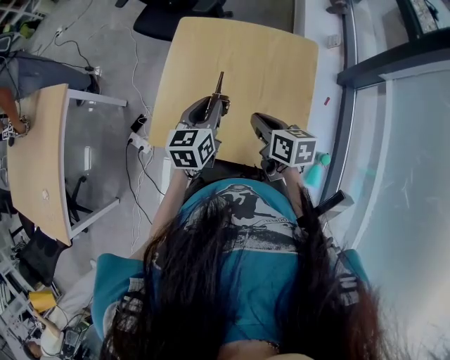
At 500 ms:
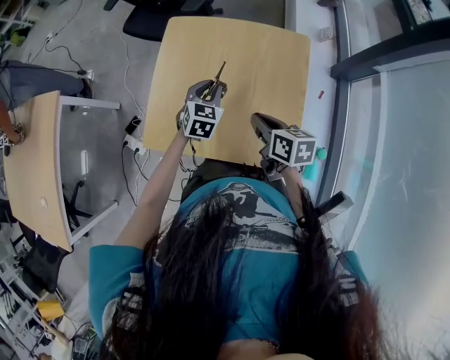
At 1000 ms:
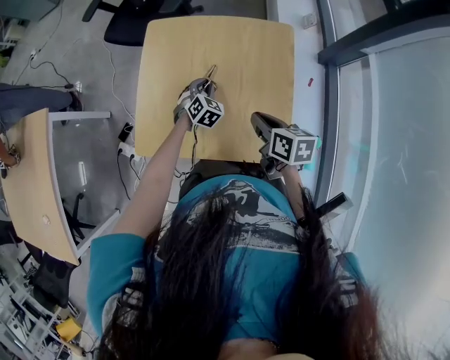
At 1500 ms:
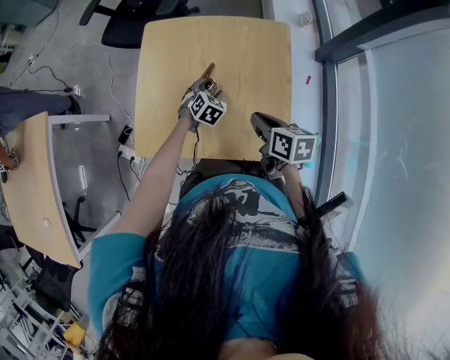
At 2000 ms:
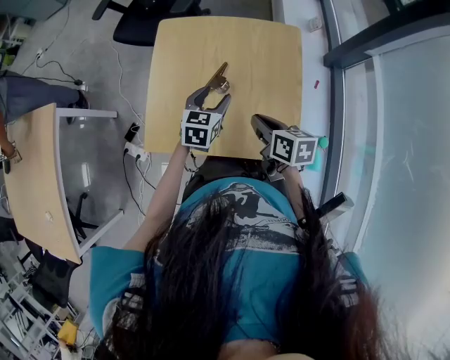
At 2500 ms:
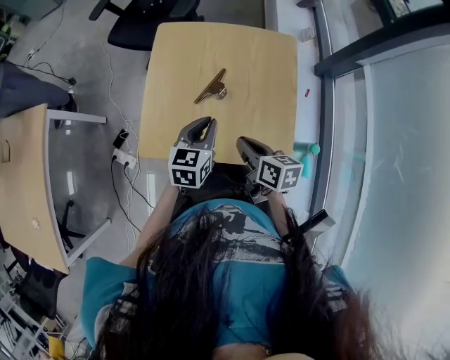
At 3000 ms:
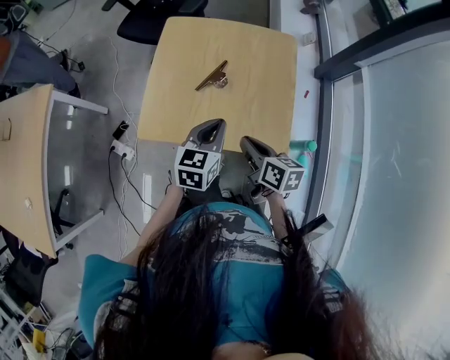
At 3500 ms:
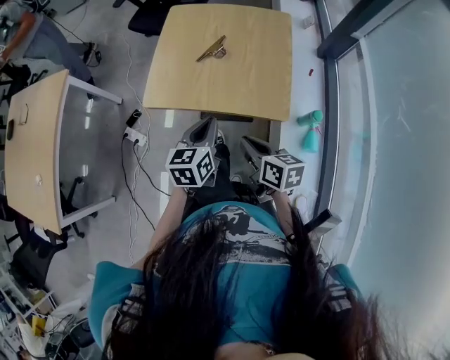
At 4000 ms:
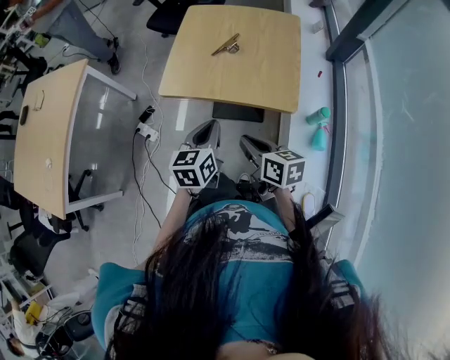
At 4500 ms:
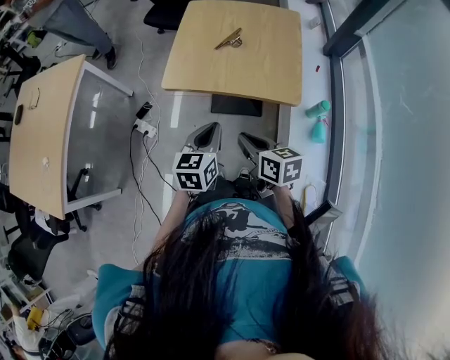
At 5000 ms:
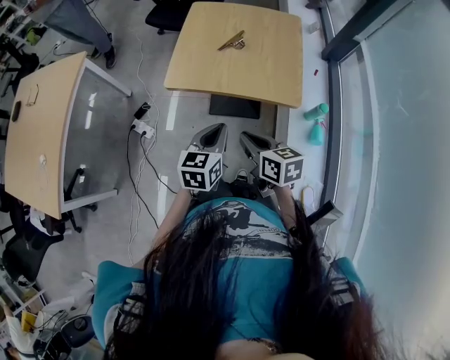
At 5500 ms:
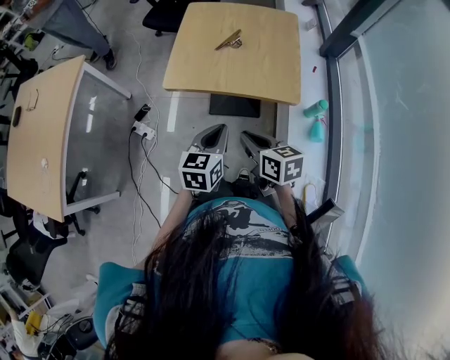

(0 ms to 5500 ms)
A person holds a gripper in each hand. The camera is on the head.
0 ms - 2000 ms: The left gripper moves downward, some 5 cm, and opens its fingers.
2000 ms - 3500 ms: The grippers both shift backward by about 30 cm. The left gripper closes up.
3500 ms - 5500 ms: The right gripper travels to the left and backward by about 15 cm; the left gripper travels backward and to the left by some 15 cm.

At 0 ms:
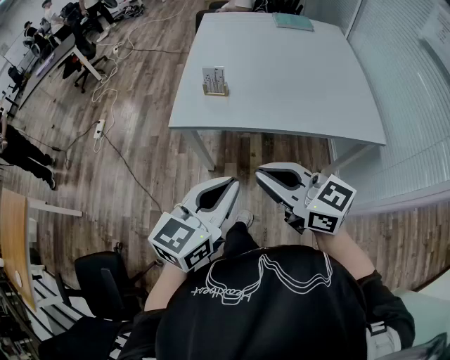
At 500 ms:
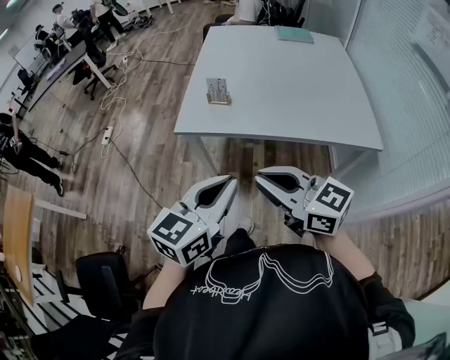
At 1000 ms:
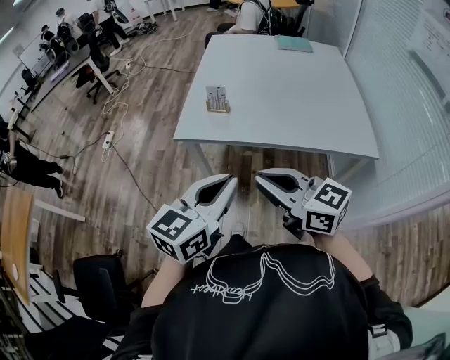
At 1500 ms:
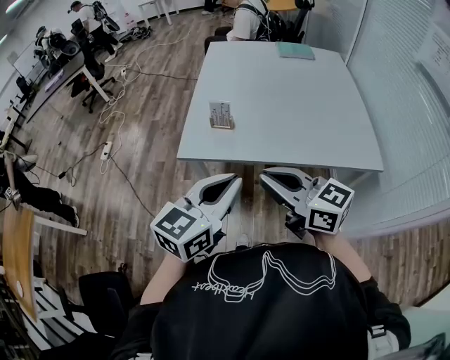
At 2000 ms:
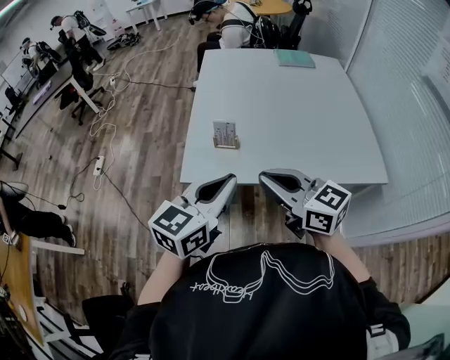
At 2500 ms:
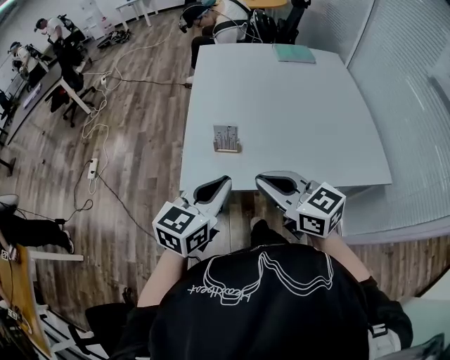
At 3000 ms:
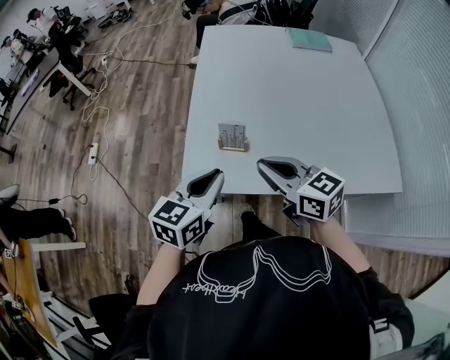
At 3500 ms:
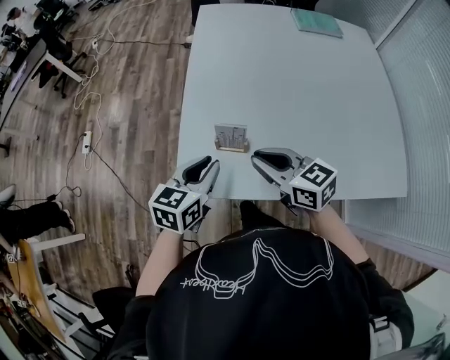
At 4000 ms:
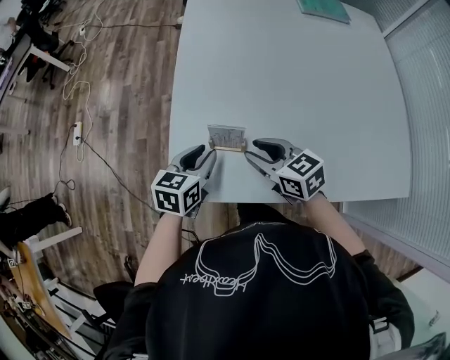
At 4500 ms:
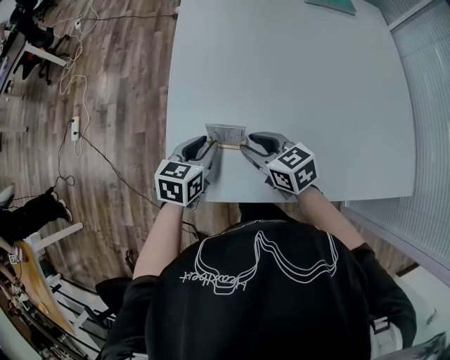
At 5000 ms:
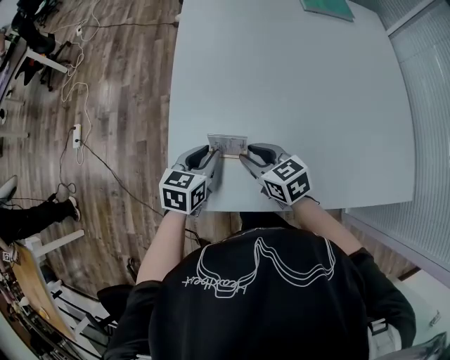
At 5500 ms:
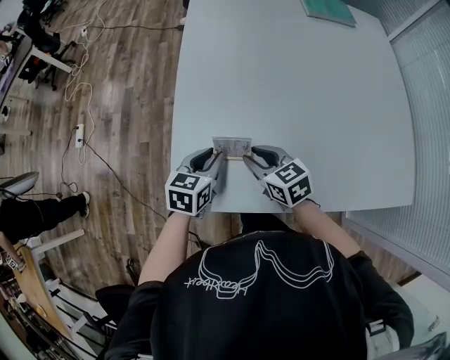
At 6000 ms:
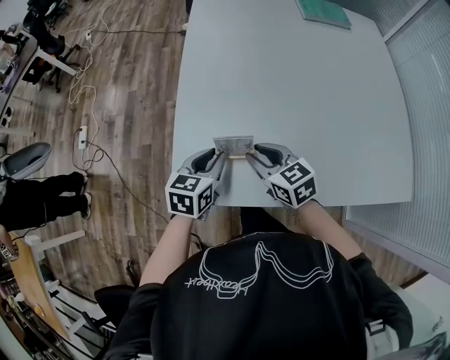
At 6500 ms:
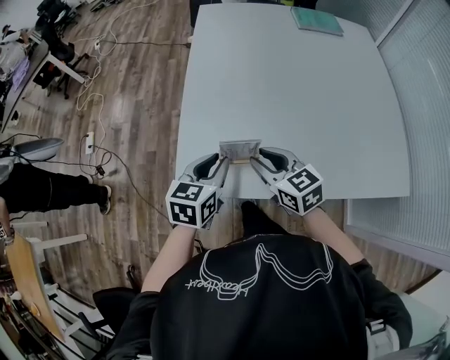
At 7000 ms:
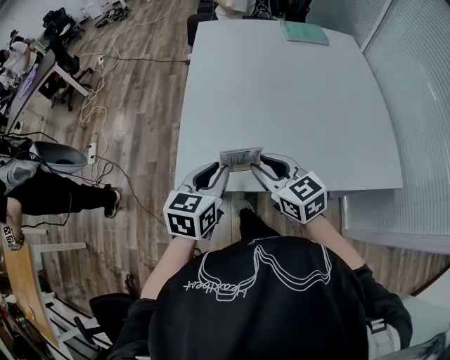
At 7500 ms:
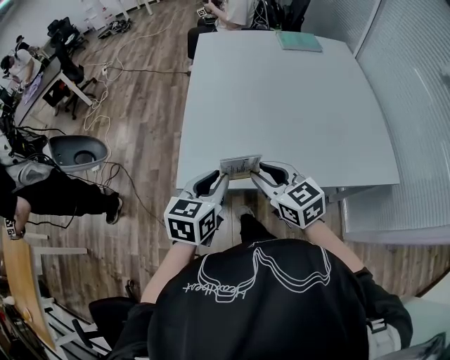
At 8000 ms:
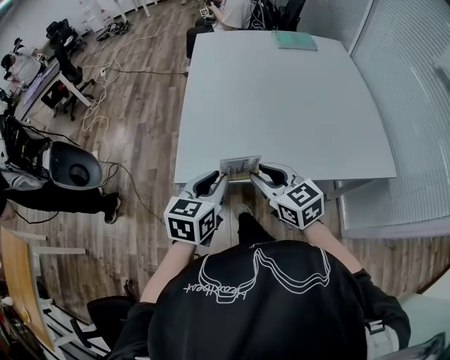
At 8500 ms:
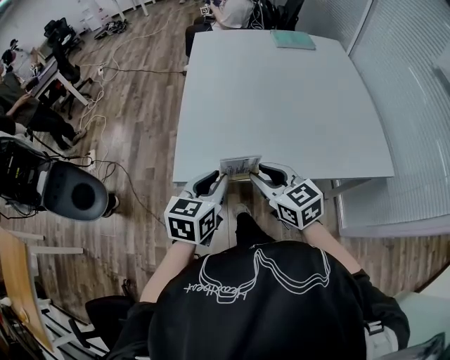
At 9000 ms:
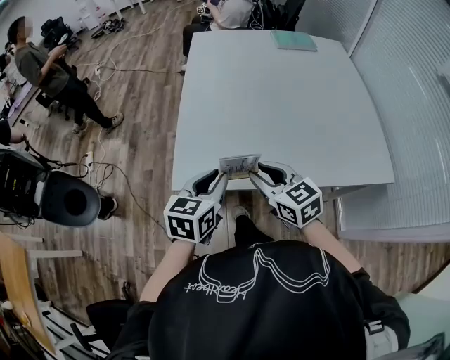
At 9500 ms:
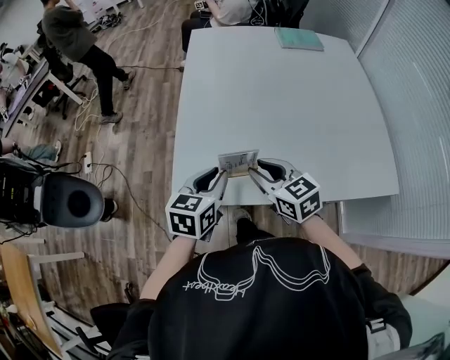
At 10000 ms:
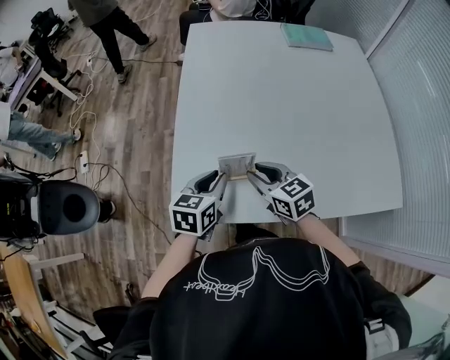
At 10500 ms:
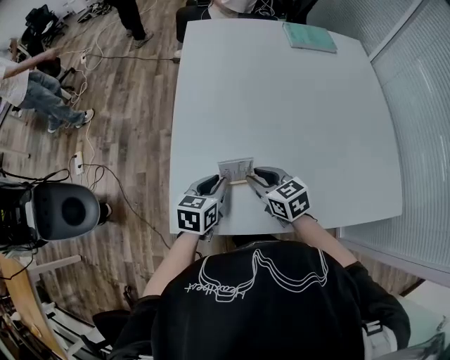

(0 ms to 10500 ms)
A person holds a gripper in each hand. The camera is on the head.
0 ms - 2000 ms: Both grippers travel together forward, approximately 15 cm.
2000 ms - 4000 ms: Both grippers move forward and downward, roughly 40 cm. The left gripper changes its angle by some 30 degrees, and opens. The right gripper swivels about 20 degrees, and opens.
4000 ms - 6500 ms: The left gripper shifts some 5 cm upward.
6500 ms - 8500 ms: The grippers both shift backward and upward by about 20 cm.
8500 ms - 10500 ms: Both grippers move forward and downward, approximately 25 cm.

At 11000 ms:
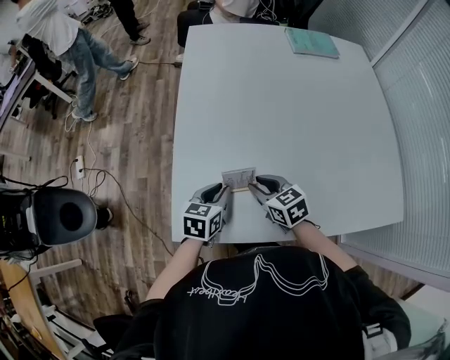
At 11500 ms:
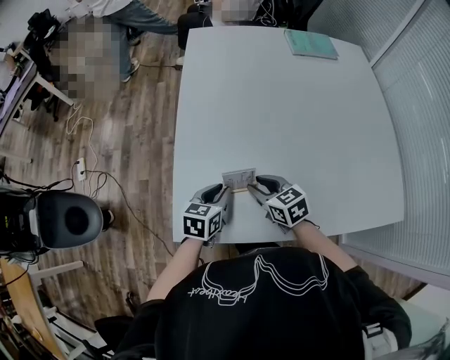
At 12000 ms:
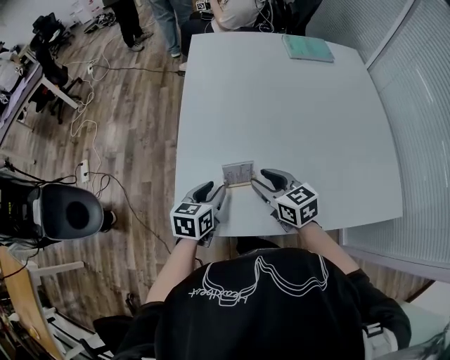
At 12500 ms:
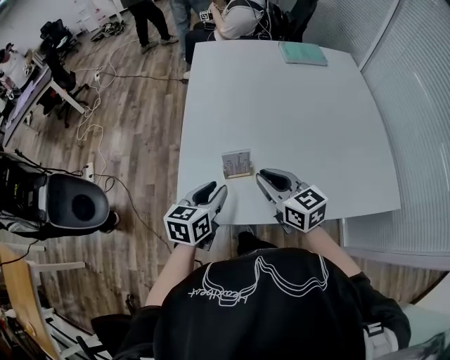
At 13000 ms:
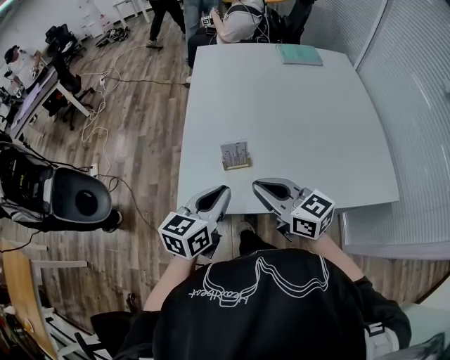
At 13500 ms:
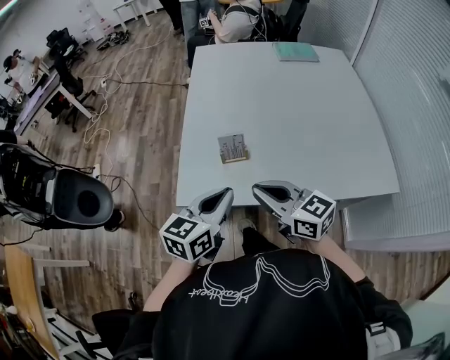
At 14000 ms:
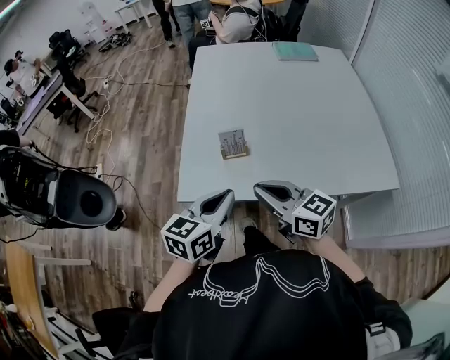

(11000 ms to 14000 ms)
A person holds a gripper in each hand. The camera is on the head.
11000 ms - 12500 ms: Both grippers travel together upward and backward, some 15 cm. The right gripper turns by approximately 20 degrees.
12500 ms - 14000 ms: The left gripper shifts approximately 15 cm backward and upward, and closes up. The right gripper shifts roughly 15 cm backward.

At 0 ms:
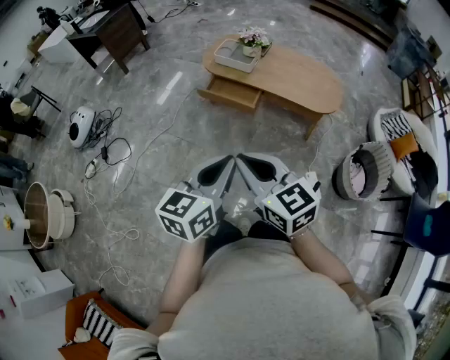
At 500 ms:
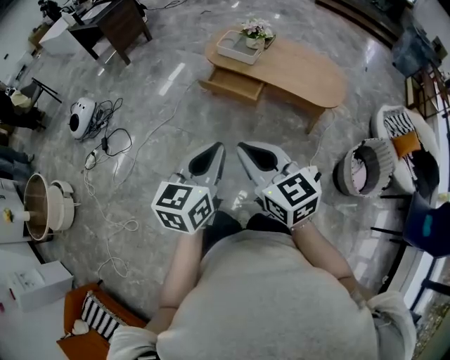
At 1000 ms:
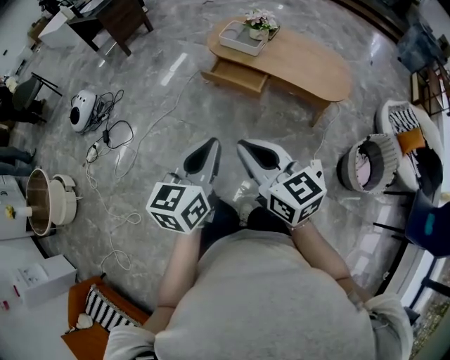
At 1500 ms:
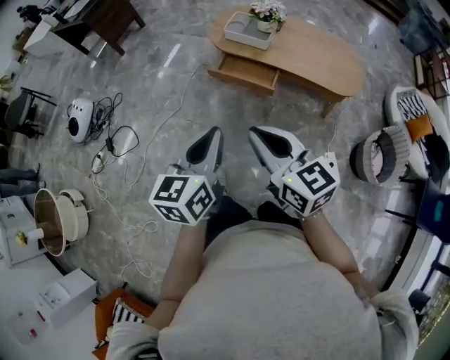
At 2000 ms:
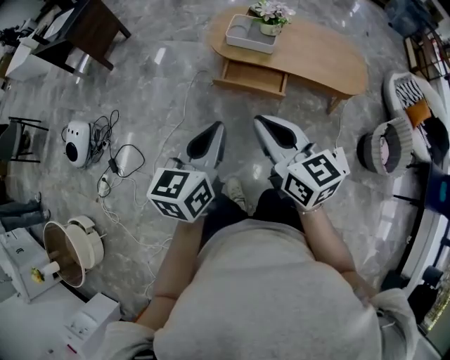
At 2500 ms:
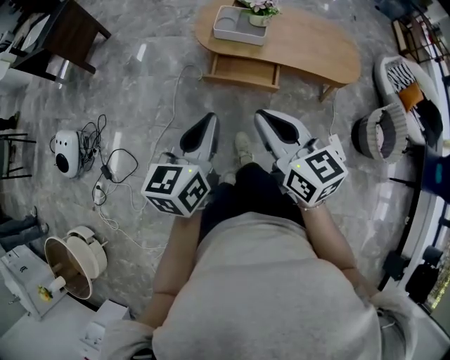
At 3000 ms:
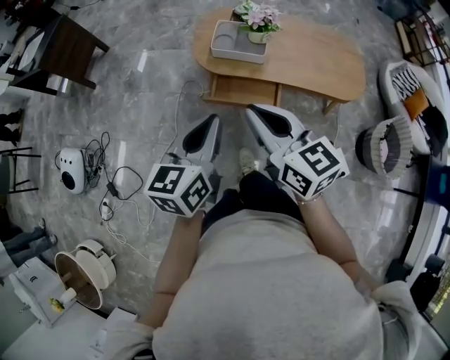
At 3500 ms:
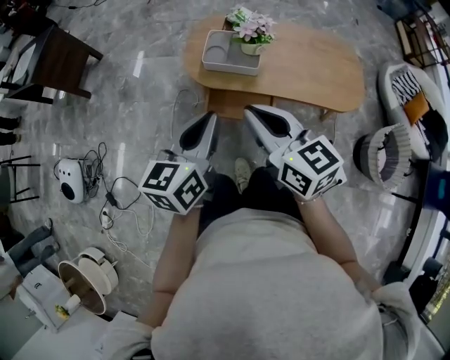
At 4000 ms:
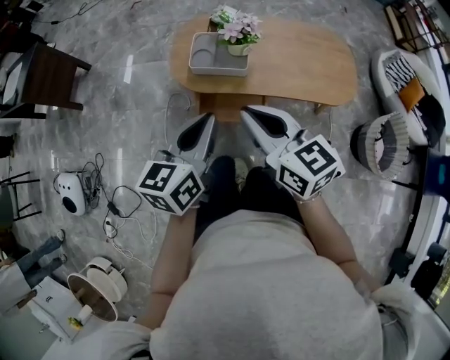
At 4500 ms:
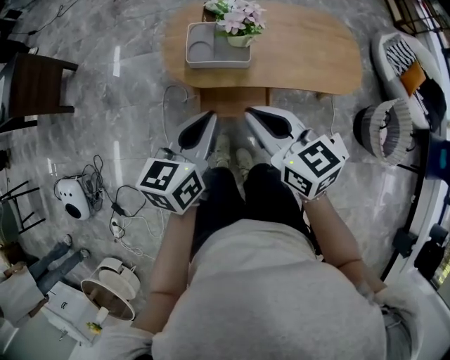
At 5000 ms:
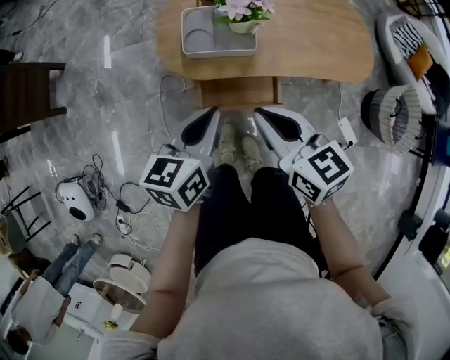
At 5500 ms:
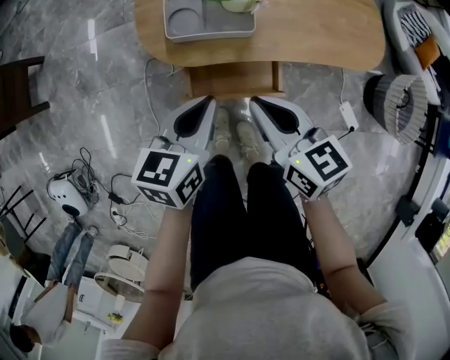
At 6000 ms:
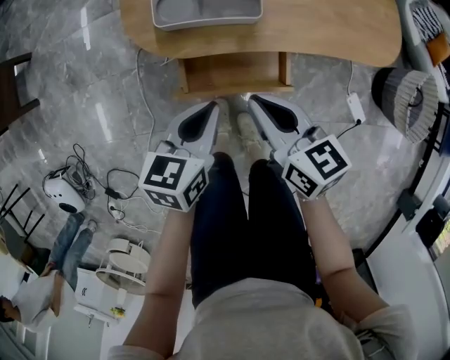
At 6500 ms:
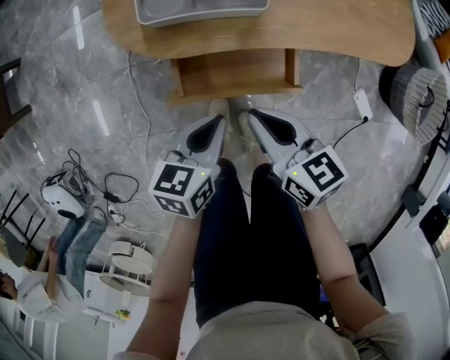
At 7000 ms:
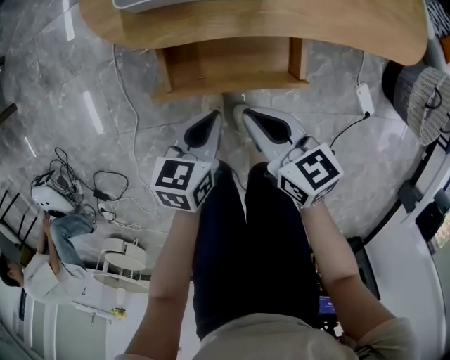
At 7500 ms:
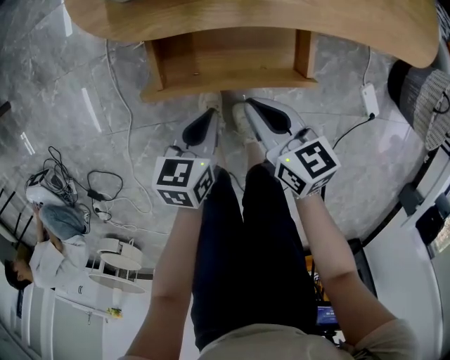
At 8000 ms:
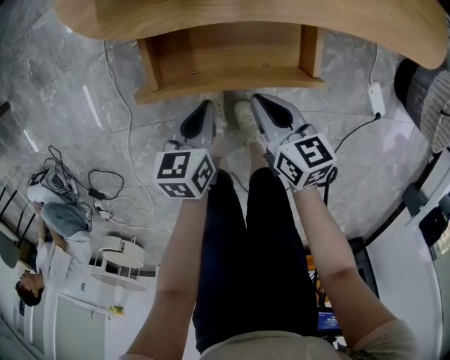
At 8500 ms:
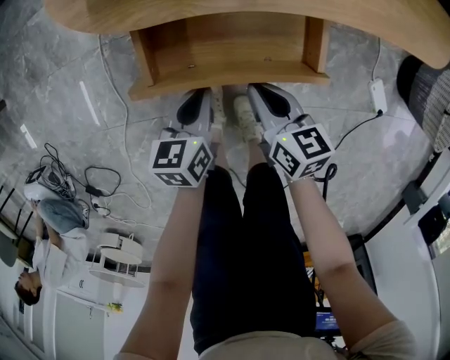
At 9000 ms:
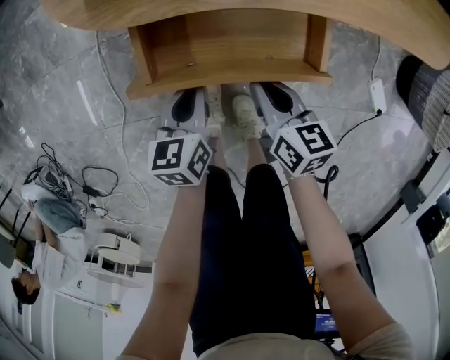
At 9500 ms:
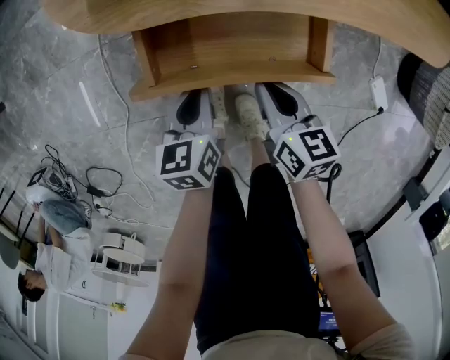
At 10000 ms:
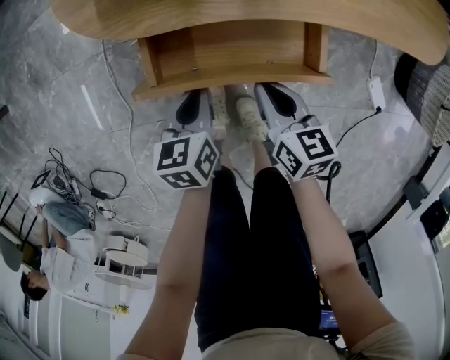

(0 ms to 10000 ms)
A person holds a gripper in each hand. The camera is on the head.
0 ms - 2000 ms: The grippers both shift forward and to the left by roughly 35 cm.
2000 ms - 4000 ms: The grippers both shift forward by roughly 30 cm.
4000 ms - 6000 ms: The left gripper shifts approximately 30 cm downward, and turns by roughly 30 degrees. The right gripper shifts roughly 35 cm downward and forward, and swivels approximately 20 degrees.
6000 ms - 8000 ms: Both grippers travel together downward, about 30 cm.
8000 ms - 10000 ms: The grippers make only small movements.
